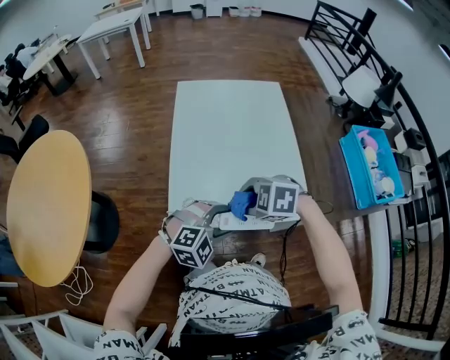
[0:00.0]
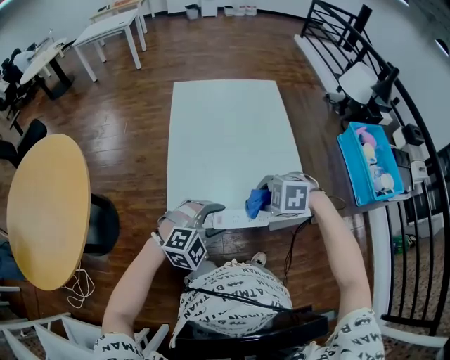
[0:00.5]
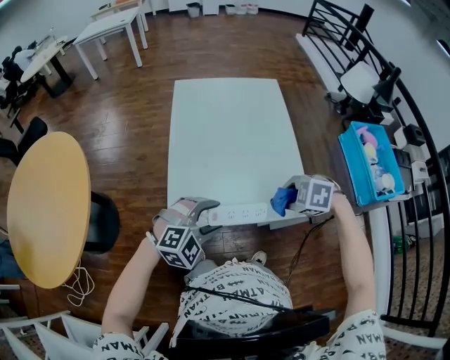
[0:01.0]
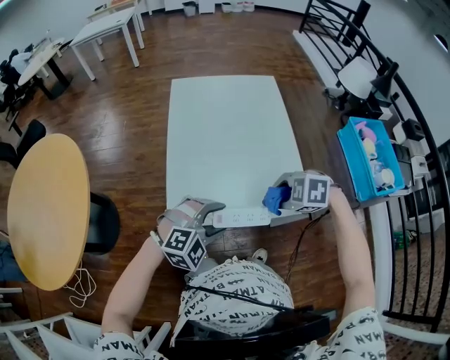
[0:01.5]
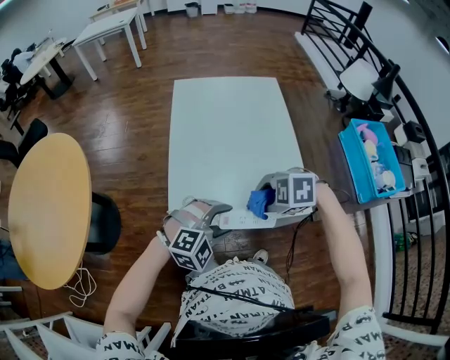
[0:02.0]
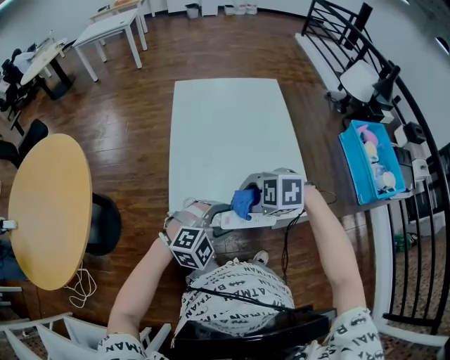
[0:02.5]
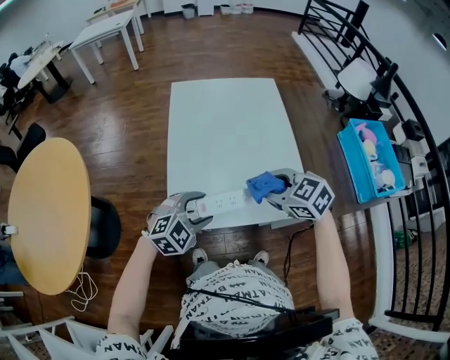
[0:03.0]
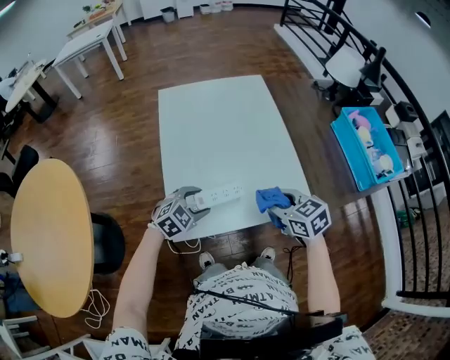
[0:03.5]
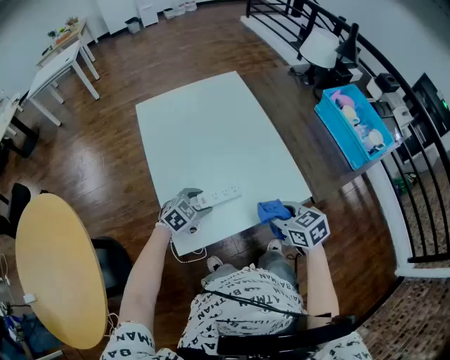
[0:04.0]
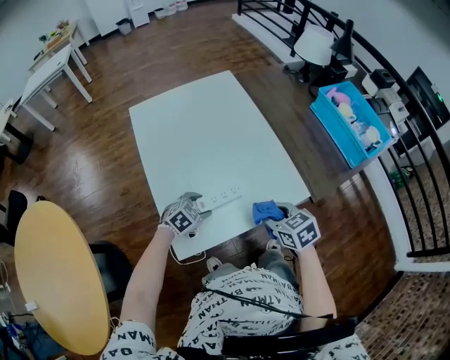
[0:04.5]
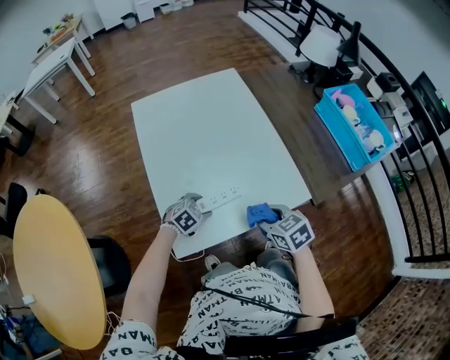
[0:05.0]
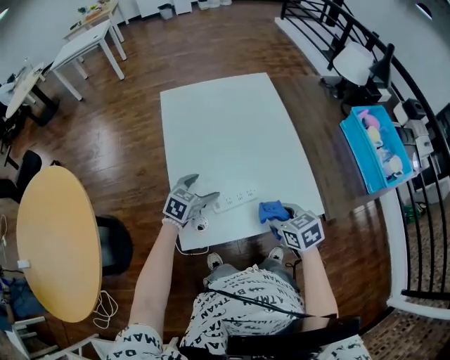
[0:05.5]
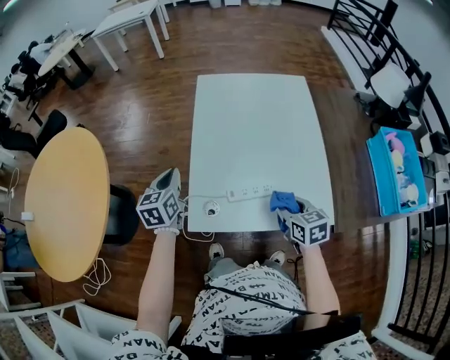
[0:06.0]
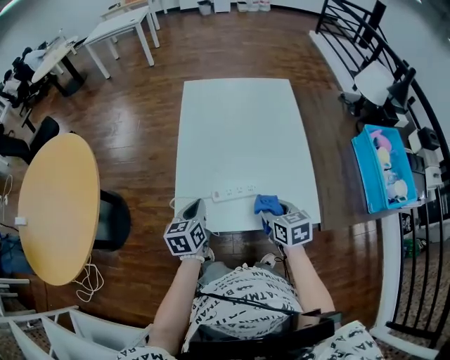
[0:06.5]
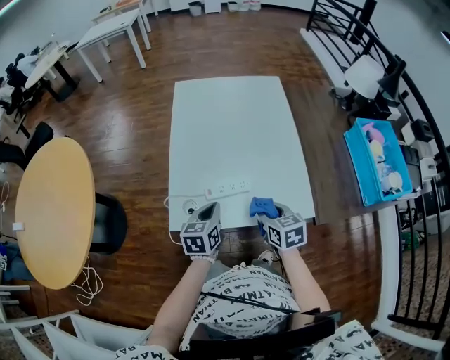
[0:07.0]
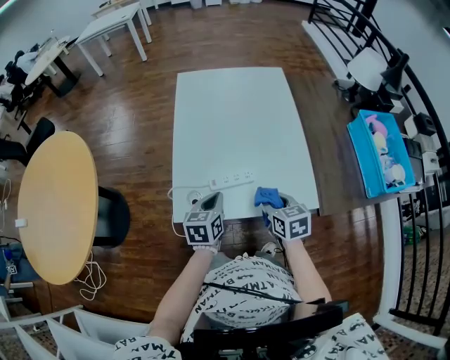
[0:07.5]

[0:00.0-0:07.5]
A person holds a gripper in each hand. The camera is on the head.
0:02.0 to 0:04.0: The right gripper ends up approximately 5 cm from where it was, and changes its angle by about 80 degrees. Meanwhile the left gripper moves approximately 20 cm, and swivels some 30 degrees.
0:04.0 to 0:05.5: The left gripper heads forward, covering approximately 5 cm, reaches approximately 5 cm downward, then returns, and turns by roughly 30 degrees, while the right gripper ends up some 5 cm from where it was.
0:05.5 to 0:07.5: The left gripper is displaced backward by approximately 15 cm, travels to the left and back again, some 15 cm each way, turns by about 40 degrees, and closes its fingers.

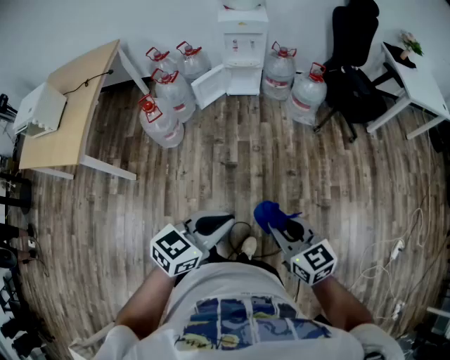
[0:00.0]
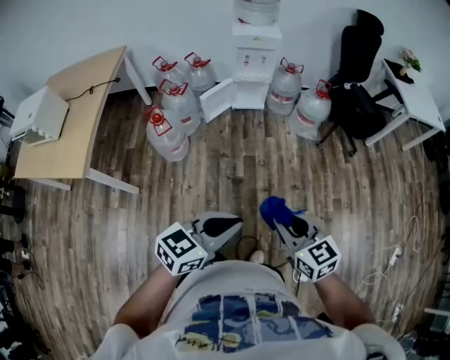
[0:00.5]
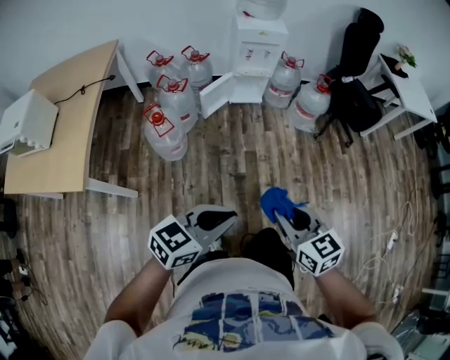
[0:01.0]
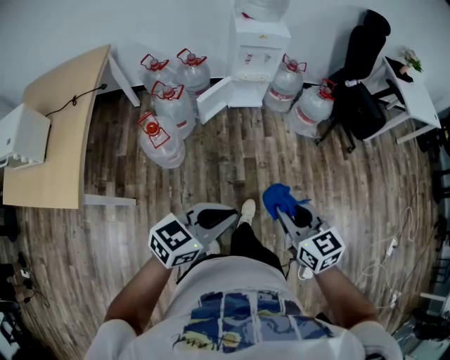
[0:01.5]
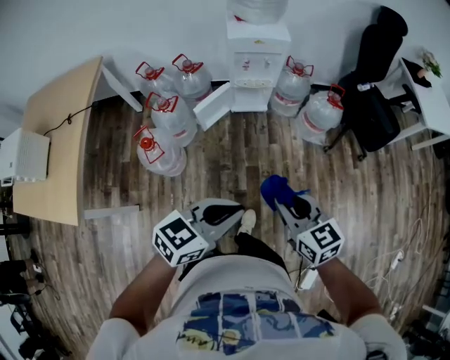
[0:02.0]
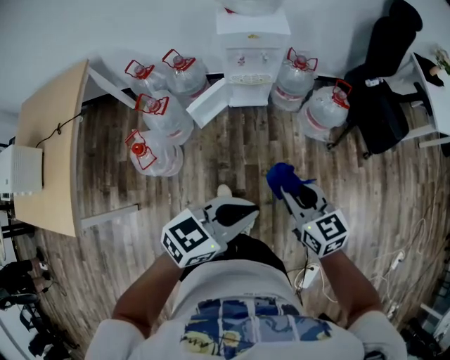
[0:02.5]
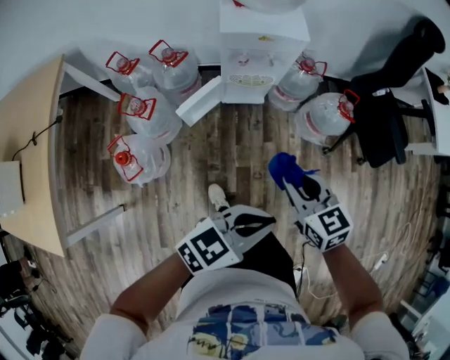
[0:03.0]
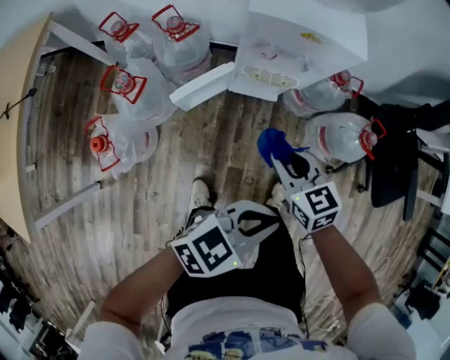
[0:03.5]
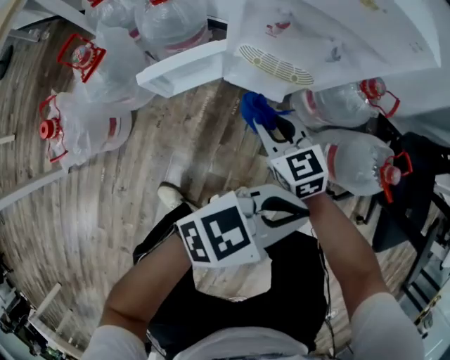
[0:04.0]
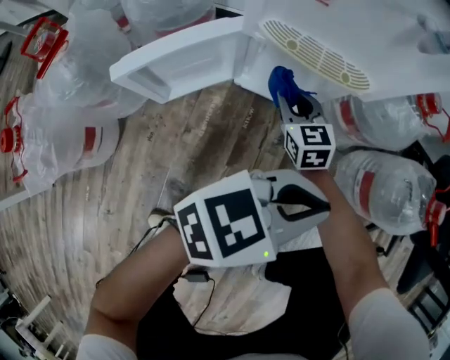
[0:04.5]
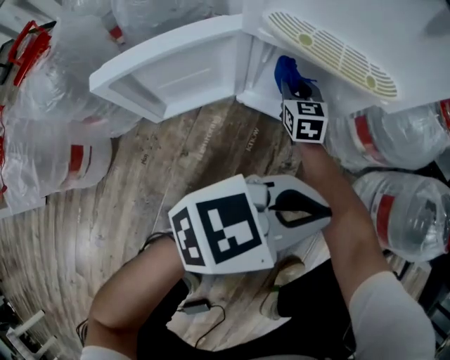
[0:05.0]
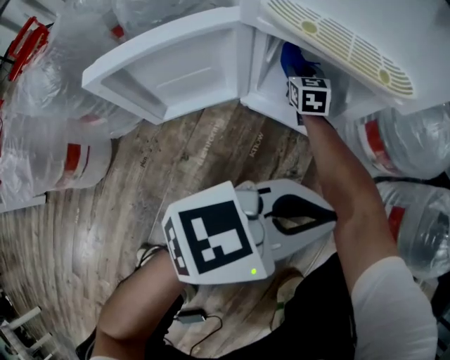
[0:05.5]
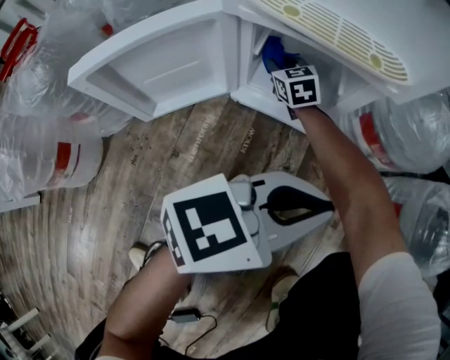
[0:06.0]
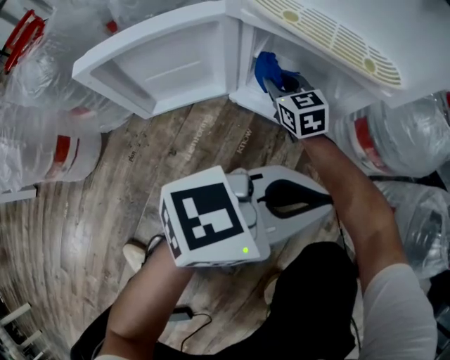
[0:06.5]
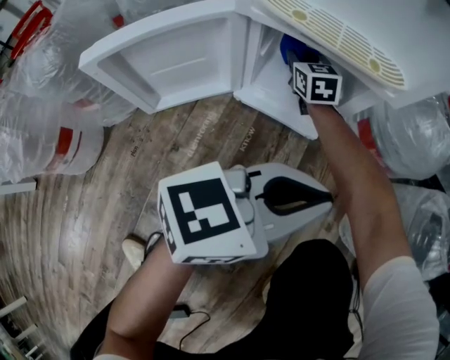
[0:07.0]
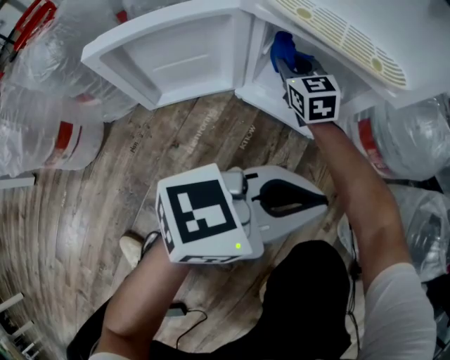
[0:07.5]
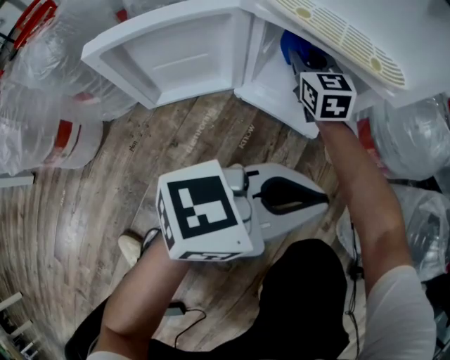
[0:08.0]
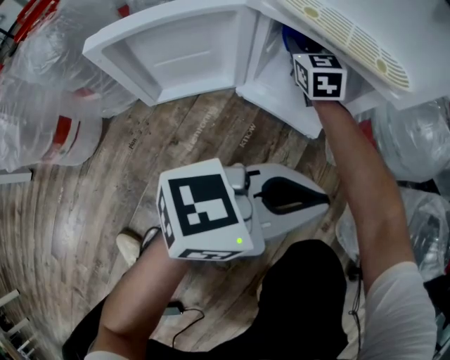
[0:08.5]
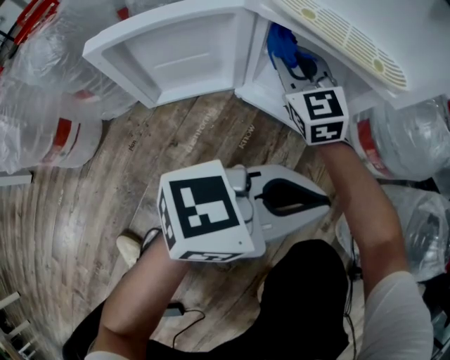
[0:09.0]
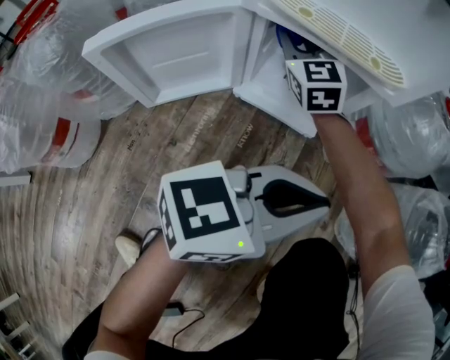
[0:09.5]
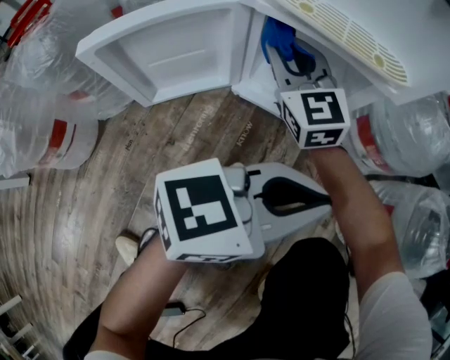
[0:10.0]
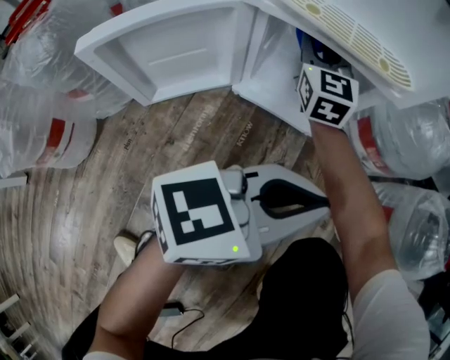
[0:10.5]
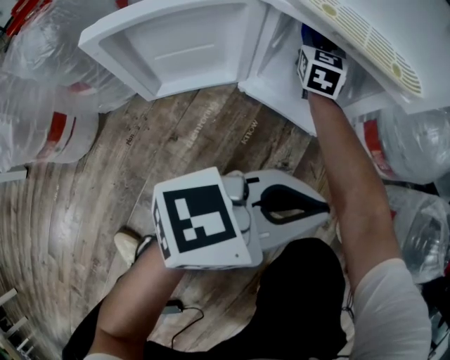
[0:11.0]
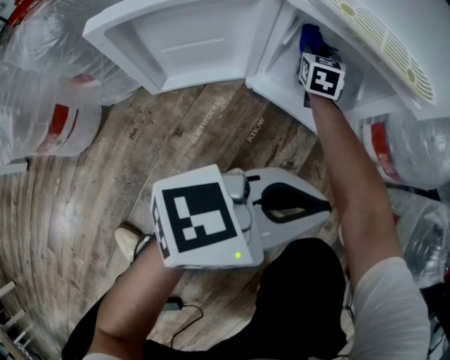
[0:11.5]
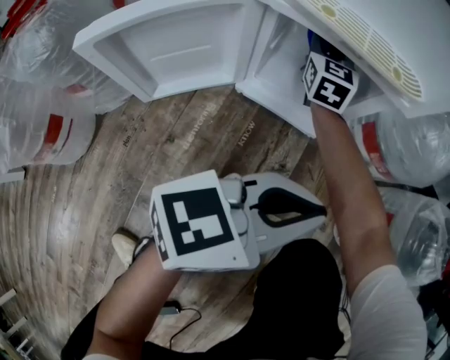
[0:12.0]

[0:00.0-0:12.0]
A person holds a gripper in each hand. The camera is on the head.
0:00.0 to 0:02.0: Both grippers travel together forward and to the left, roughly 35 cm.
0:02.0 to 0:04.0: Both grippers are carried forward, some 50 cm. The grippers both shift downward by some 40 cm. The right gripper rotates roughly 30 degrees.
0:04.0 to 0:06.0: The left gripper moves downward, approximately 30 cm. The right gripper heads downward and forward, covering some 50 cm.
0:06.0 to 0:08.0: The right gripper heads upward, covering about 10 cm.
0:08.0 to 0:10.0: The right gripper swings forward and backward, some 10 cm each way, with 2 reversals.
0:10.0 to 0:12.0: The right gripper is displaced forward by about 15 cm, and changes its angle by some 30 degrees.

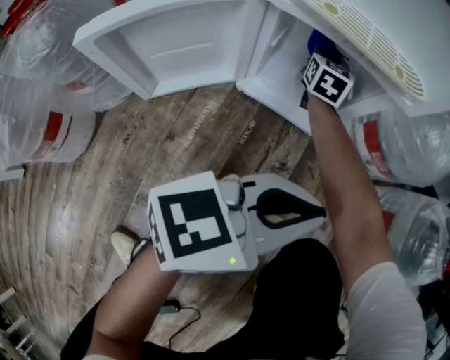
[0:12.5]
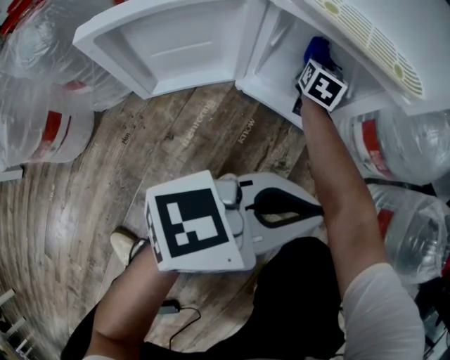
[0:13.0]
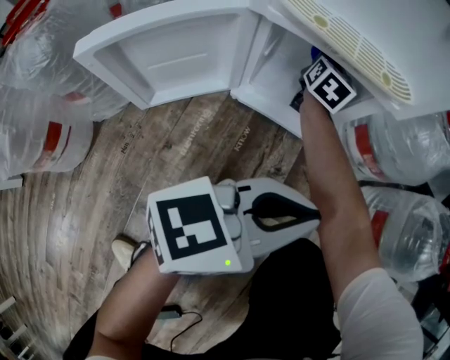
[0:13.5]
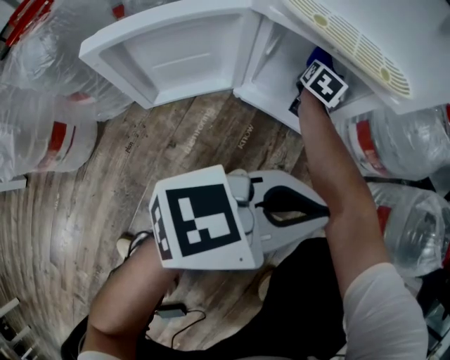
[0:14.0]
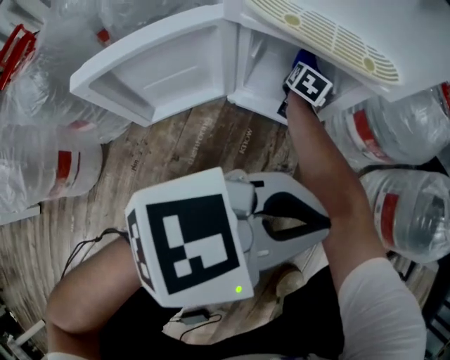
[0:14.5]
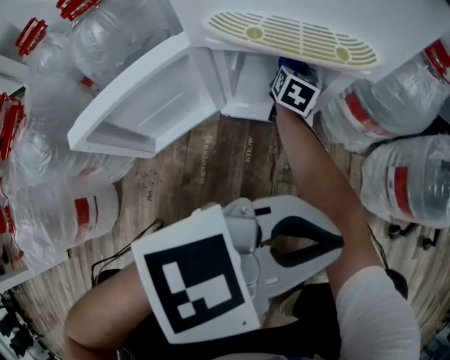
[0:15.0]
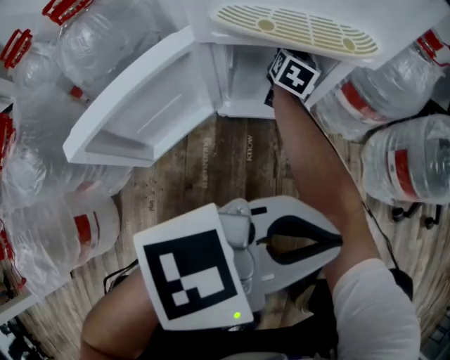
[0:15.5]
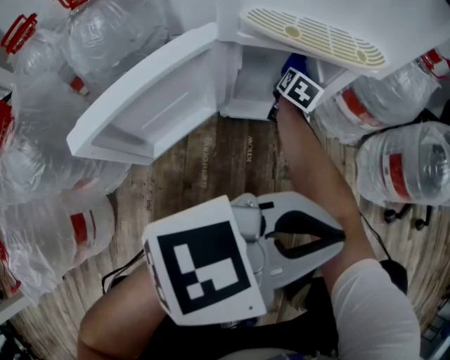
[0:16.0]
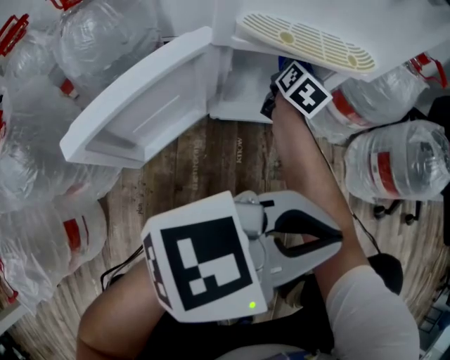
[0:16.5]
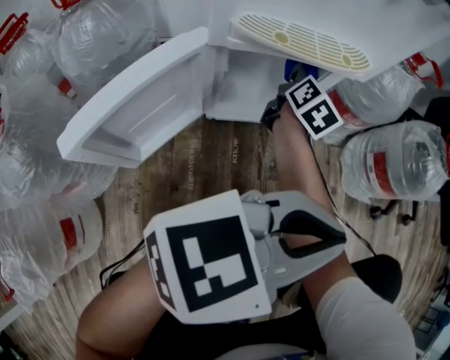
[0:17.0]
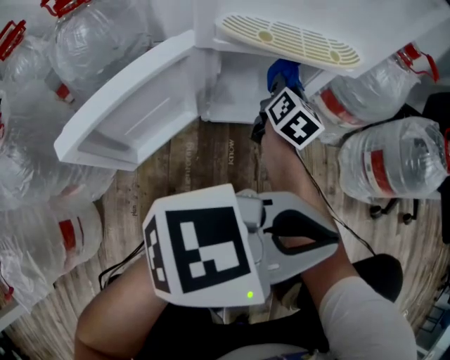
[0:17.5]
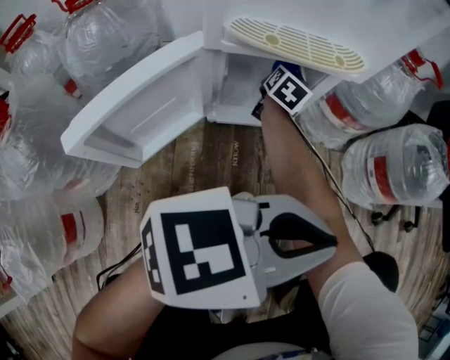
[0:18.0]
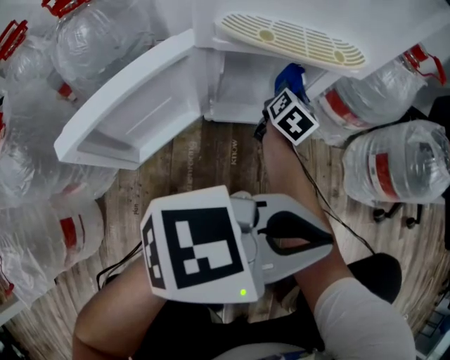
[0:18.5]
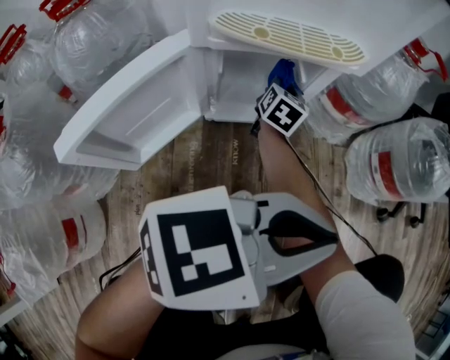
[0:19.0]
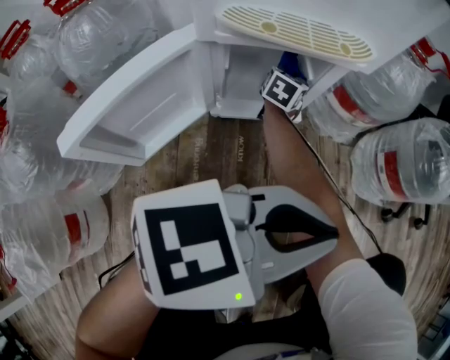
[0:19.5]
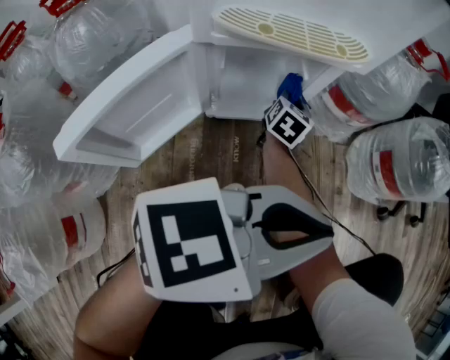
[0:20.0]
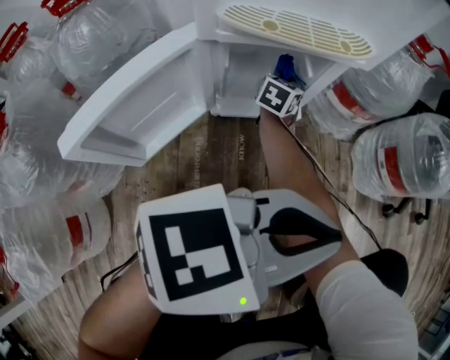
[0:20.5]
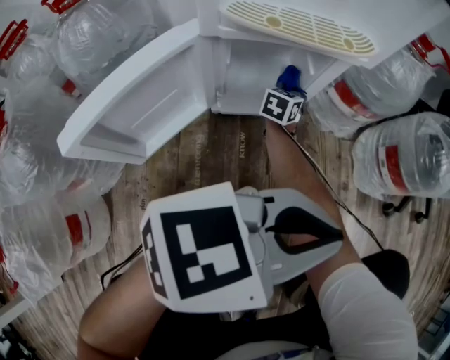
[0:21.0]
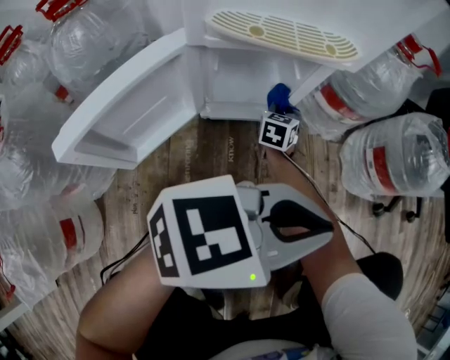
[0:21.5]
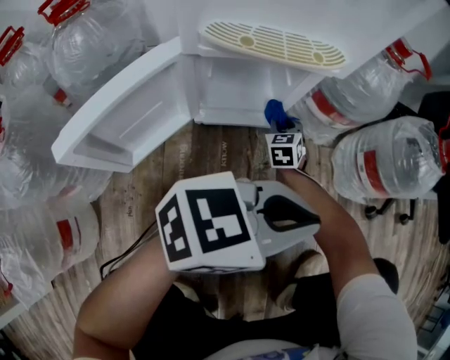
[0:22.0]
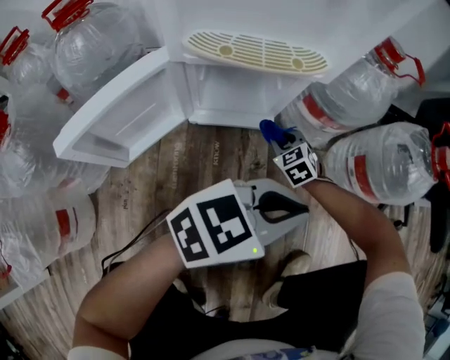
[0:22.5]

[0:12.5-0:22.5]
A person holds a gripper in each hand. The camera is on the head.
0:12.5 to 0:14.5: The right gripper shifts approximately 5 cm downward, and swivels some 30 degrees; the left gripper swivels some 20 degrees.
0:14.5 to 0:16.5: The left gripper is displaced backward by approximately 5 cm. Meanwhile the right gripper moves up and down over approximately 10 cm, changing direction 2 times, and changes its angle by approximately 20 degrees.
0:16.5 to 0:18.5: The right gripper is displaced to the right by roughly 5 cm.
0:18.5 to 0:20.5: The right gripper moves left and right over about 10 cm, changing direction 2 times.
0:20.5 to 0:22.5: The right gripper moves to the right, some 15 cm, and twists some 50 degrees counterclockwise, seen from behind; the left gripper is displaced forward by roughly 5 cm.
